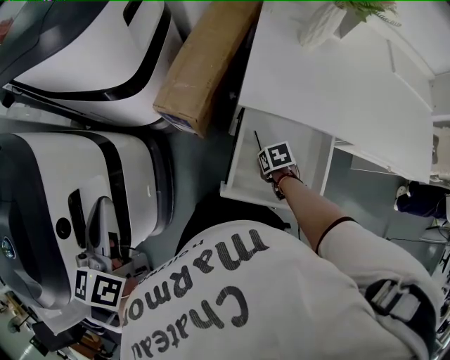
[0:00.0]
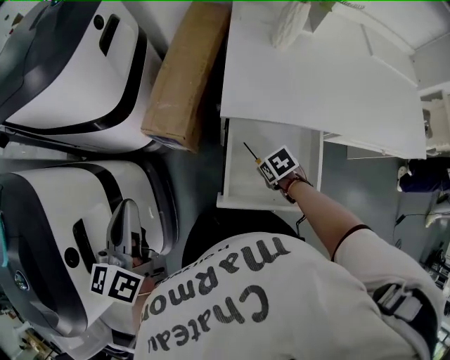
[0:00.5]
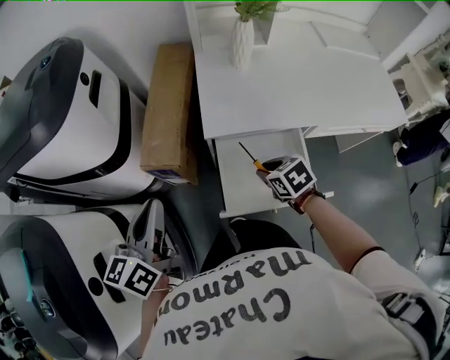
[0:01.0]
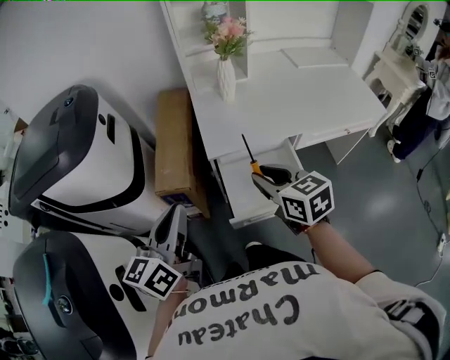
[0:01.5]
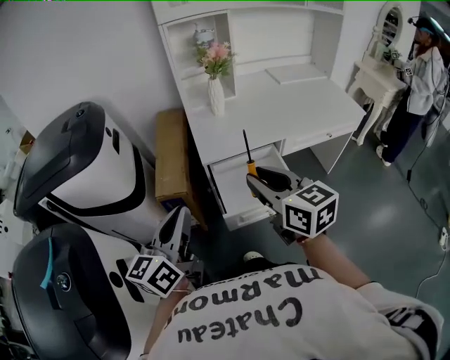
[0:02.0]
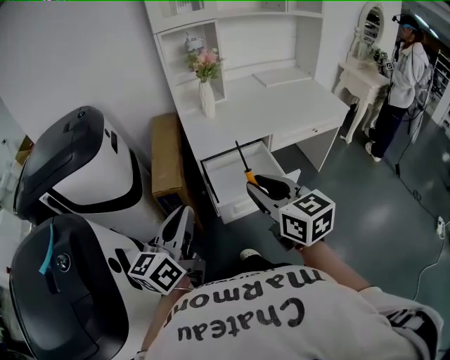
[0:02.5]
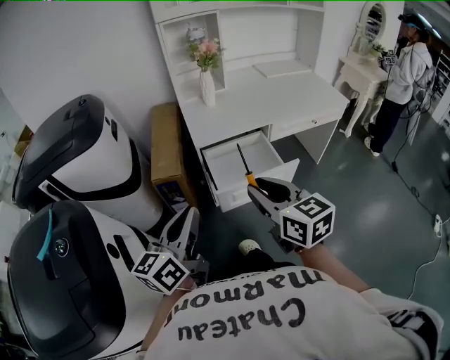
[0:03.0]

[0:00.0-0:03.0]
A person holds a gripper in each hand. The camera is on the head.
0:00.0 to 0:01.5: The right gripper travels upward by some 40 cm, and points its fingers approximately 50 degrees further upward, while the left gripper moves roughly 15 cm, and turns by about 40 degrees.
0:01.5 to 0:03.0: Both grippers travel together backward, some 20 cm.

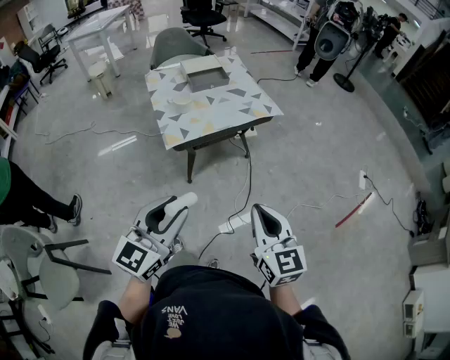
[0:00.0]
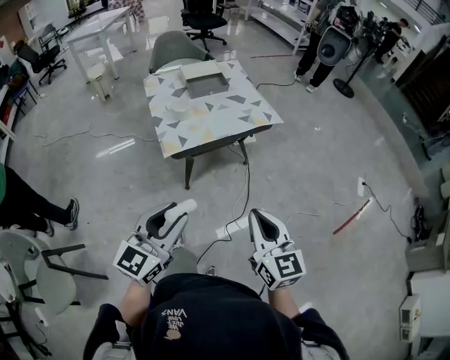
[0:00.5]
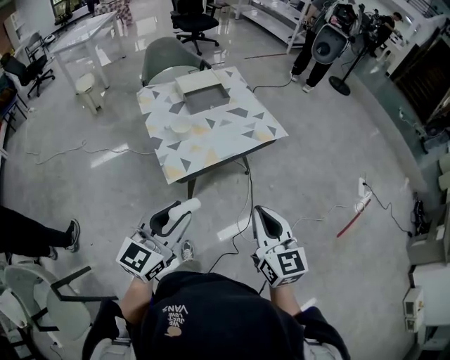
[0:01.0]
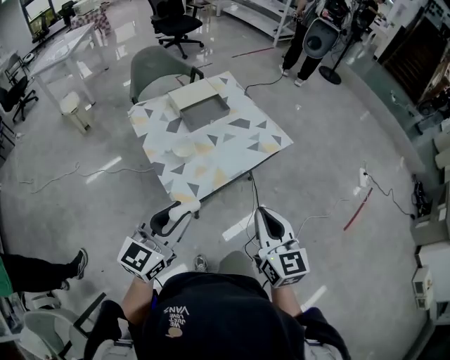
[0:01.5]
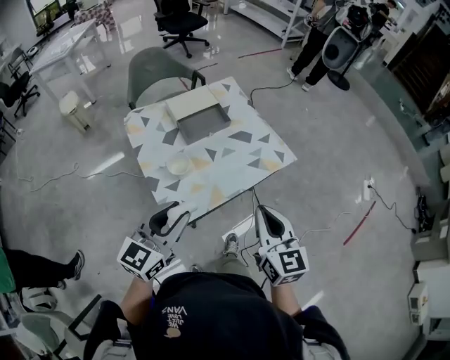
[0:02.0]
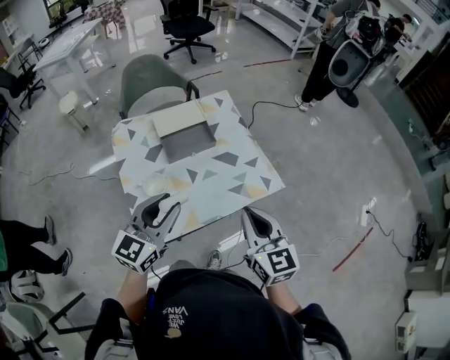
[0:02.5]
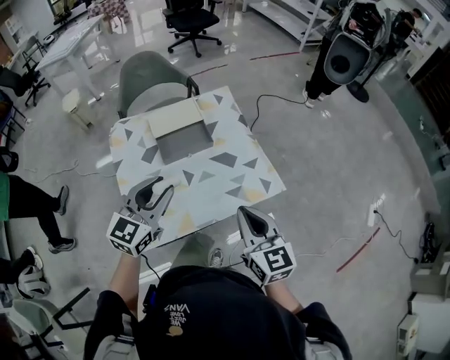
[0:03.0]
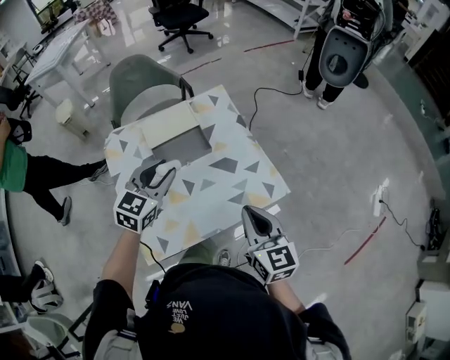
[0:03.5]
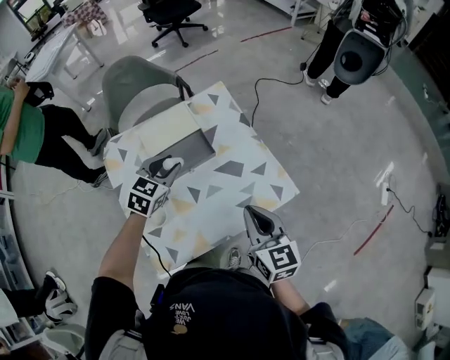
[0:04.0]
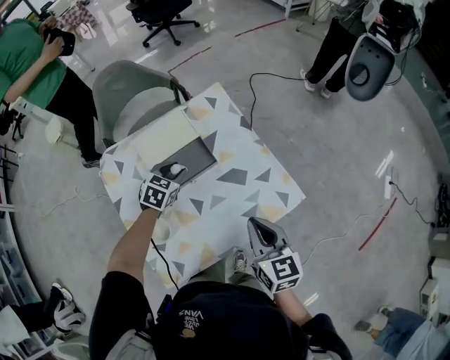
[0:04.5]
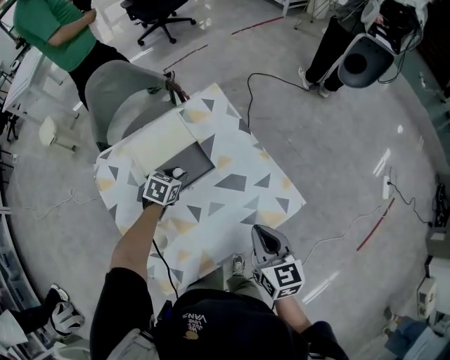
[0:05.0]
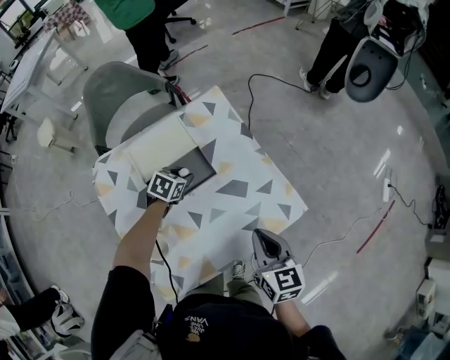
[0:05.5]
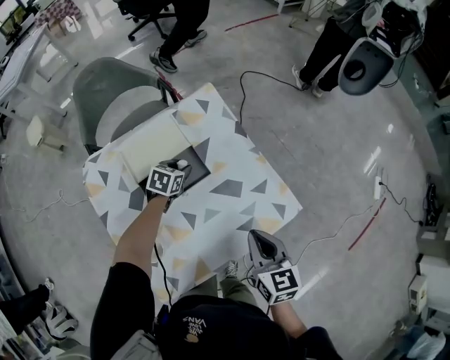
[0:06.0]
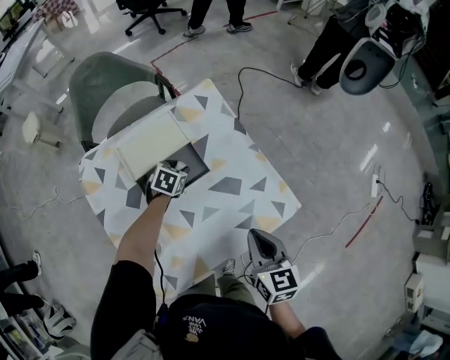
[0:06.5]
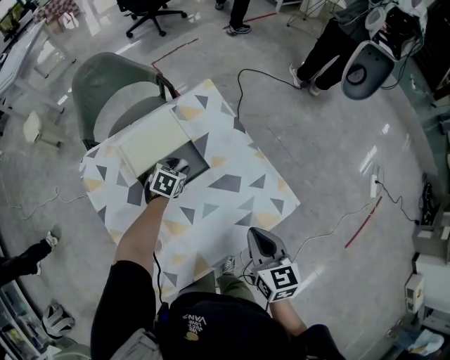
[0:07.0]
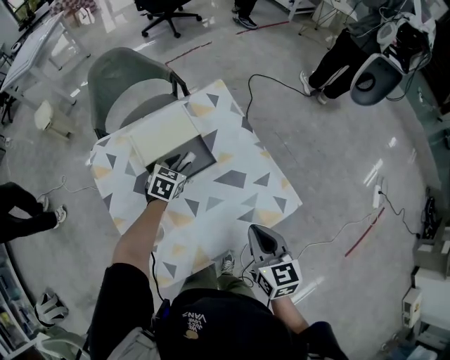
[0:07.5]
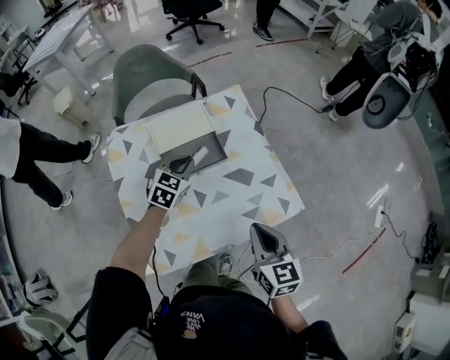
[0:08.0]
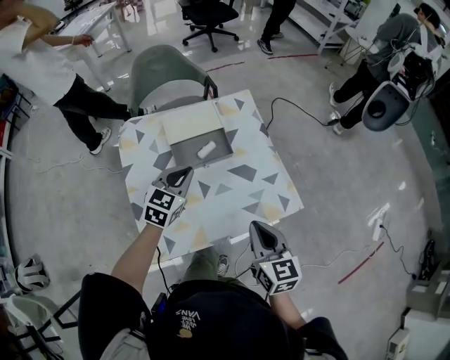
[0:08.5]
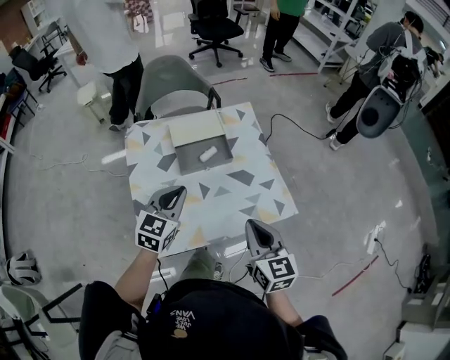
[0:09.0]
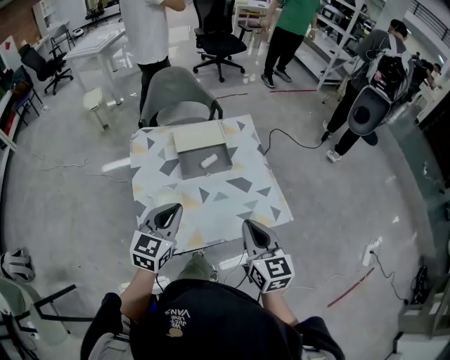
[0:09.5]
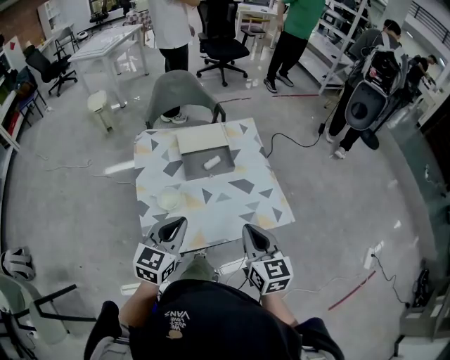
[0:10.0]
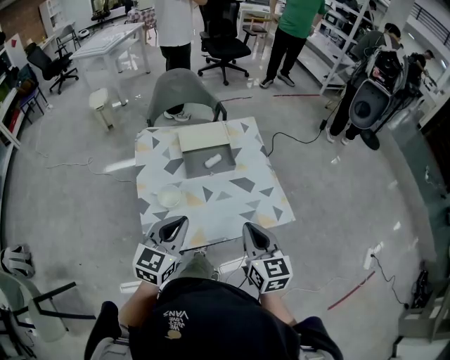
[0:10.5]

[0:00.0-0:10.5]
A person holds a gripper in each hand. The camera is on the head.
0:00.0 to 0:02.0: Both grippers travel together forward, about 35 cm.
0:02.0 to 0:04.0: The left gripper goes some 40 cm forward, and turns by approximately 30 degrees. Meanwhile the right gripper moves forward, some 25 cm.
0:04.0 to 0:06.5: The left gripper shifts approximately 25 cm downward and forward, and rotates approximately 30 degrees, while the right gripper moves downward, about 10 cm.
0:06.5 to 0:08.5: The left gripper is displaced upward and backward by roughly 30 cm, points its fingers approximately 30 degrees further upward, and closes. The right gripper travels backward and upward by some 10 cm.
0:08.5 to 0:10.5: The right gripper heads backward, covering some 5 cm, while the left gripper travels backward by some 20 cm.

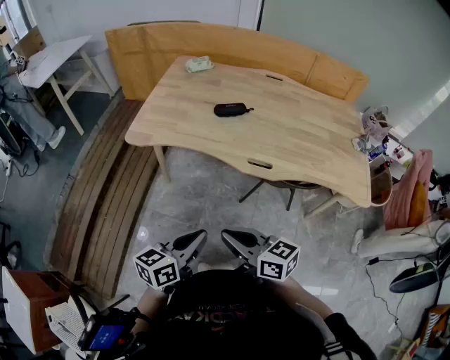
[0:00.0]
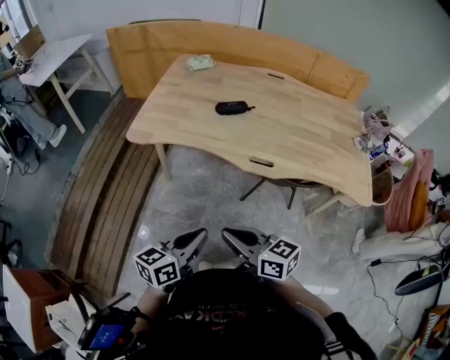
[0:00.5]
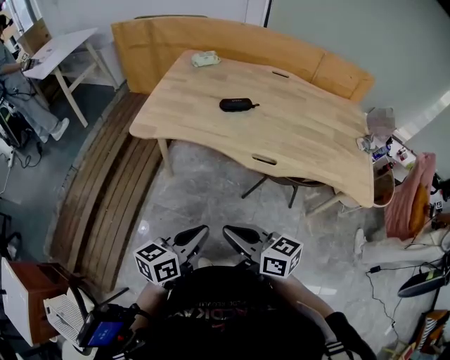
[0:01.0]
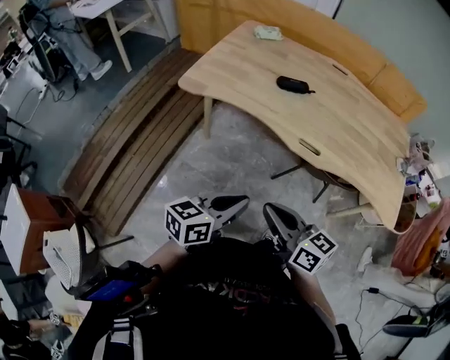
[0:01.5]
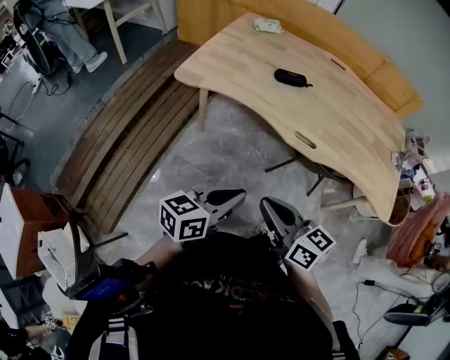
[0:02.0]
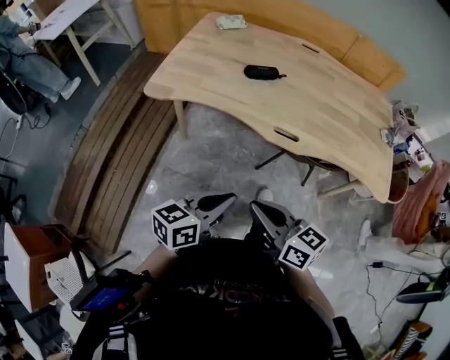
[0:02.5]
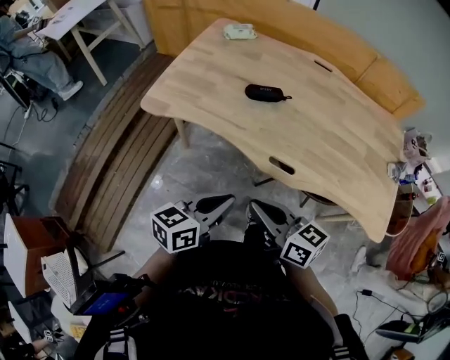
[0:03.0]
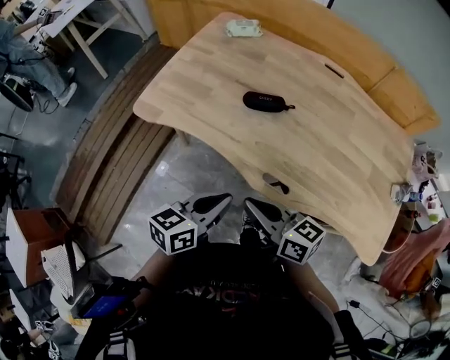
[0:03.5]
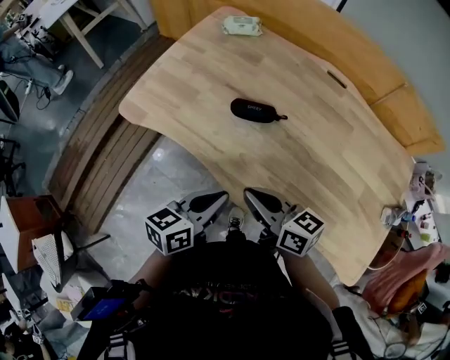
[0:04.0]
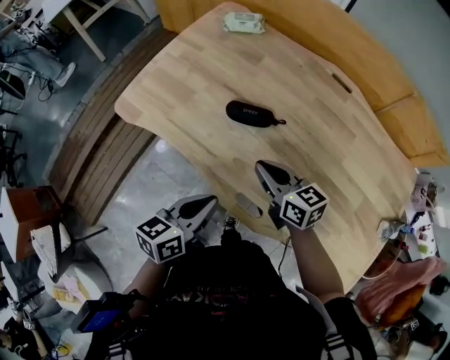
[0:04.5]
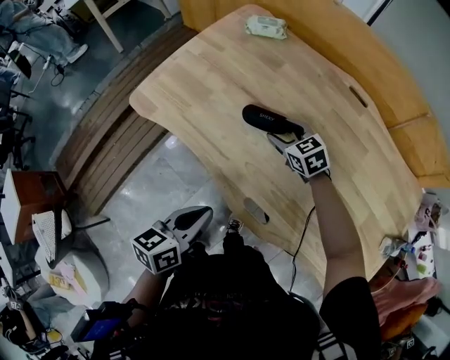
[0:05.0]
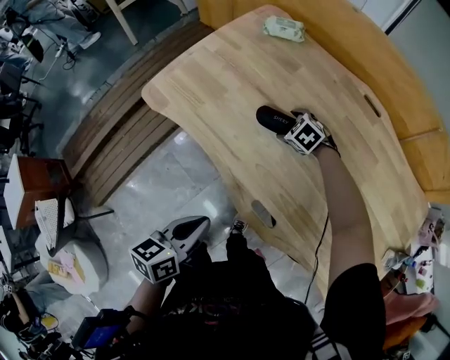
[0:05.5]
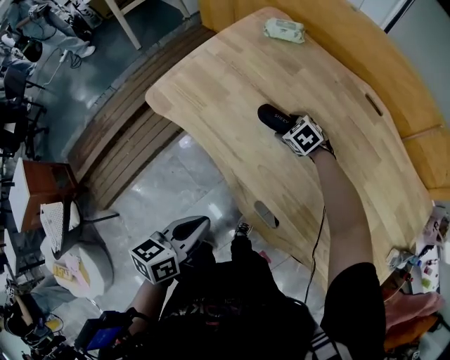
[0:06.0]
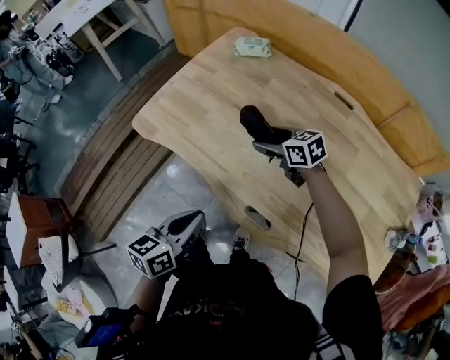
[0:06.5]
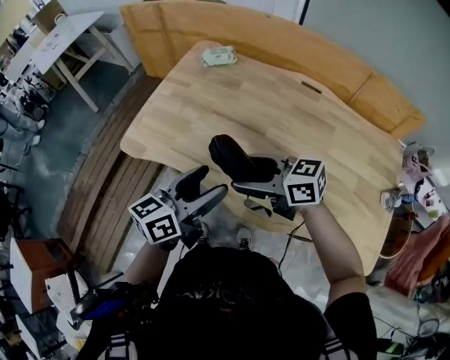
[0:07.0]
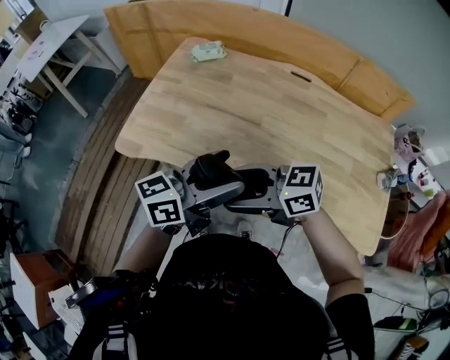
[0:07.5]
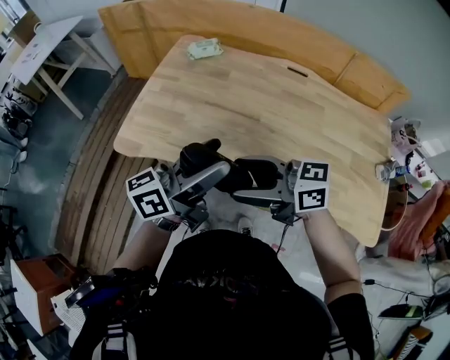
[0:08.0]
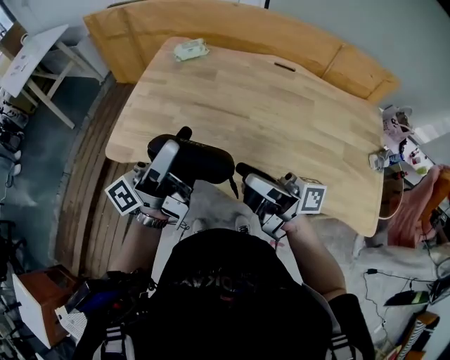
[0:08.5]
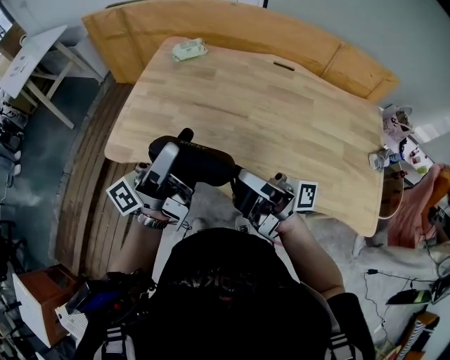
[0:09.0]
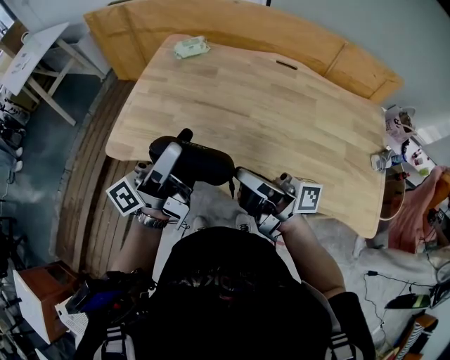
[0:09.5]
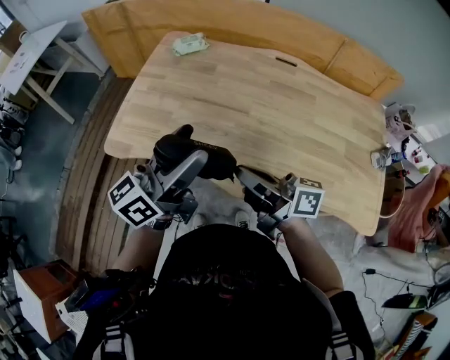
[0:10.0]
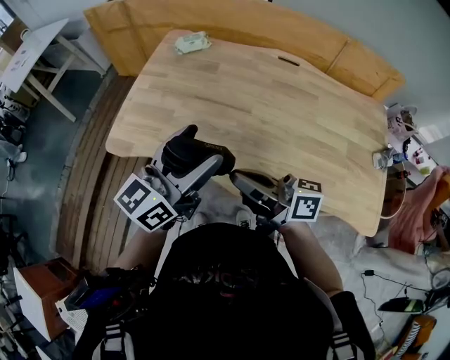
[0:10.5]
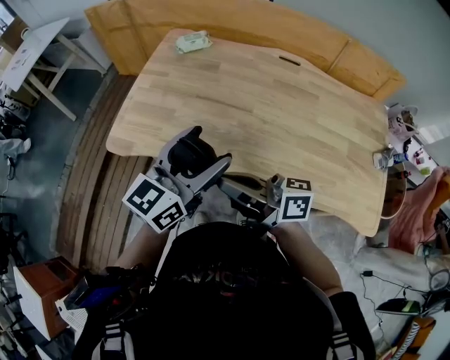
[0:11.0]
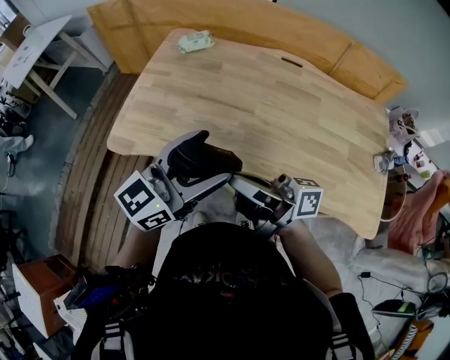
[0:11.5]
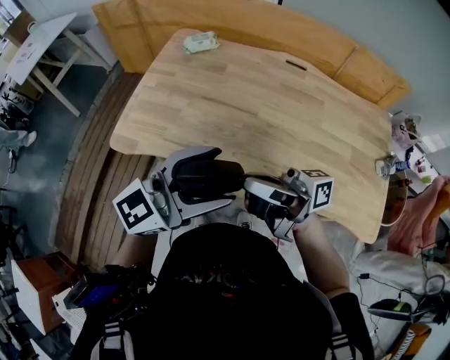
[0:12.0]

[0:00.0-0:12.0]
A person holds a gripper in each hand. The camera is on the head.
0:00.0 to 0:02.0: The grippers move only a little.
0:02.0 to 0:04.0: The two grippers go about 35 cm forward and to the right.
0:04.0 to 0:06.0: The left gripper shifts approximately 5 cm to the left, and changes its angle by roughly 20 degrees. Meanwhile the right gripper goes about 35 cm forward and downward, angles its fingers downward, by about 50 degrees, and opens up.
0:06.0 to 0:08.0: The right gripper moves upward, some 30 cm, and tips its fingers upward by roughly 60 degrees. Meanwhile the left gripper heads upward, covering some 15 cm, tips its fingers upward by about 40 degrees, and opens its fingers.
0:08.0 to 0:10.0: The right gripper changes its angle by roughly 40 degrees, and closes up.
0:10.0 to 0:12.0: The right gripper moves upward, approximately 5 cm, and swivels approximately 30 degrees, while the left gripper ends up some 10 cm from where it was, and changes its angle by roughly 30 degrees.

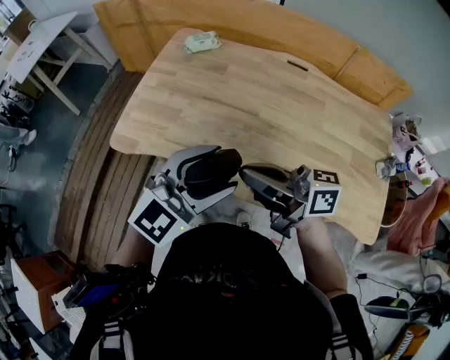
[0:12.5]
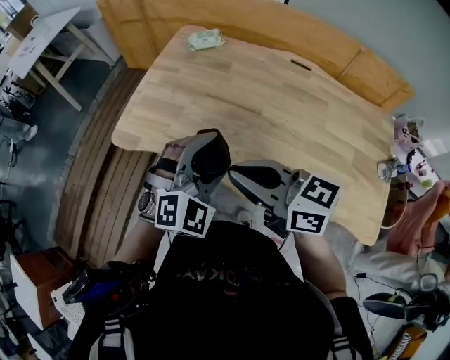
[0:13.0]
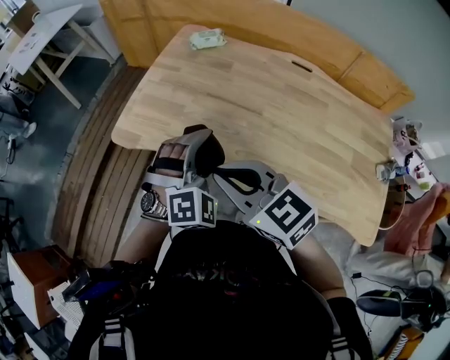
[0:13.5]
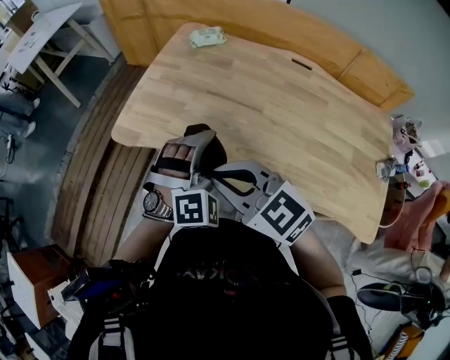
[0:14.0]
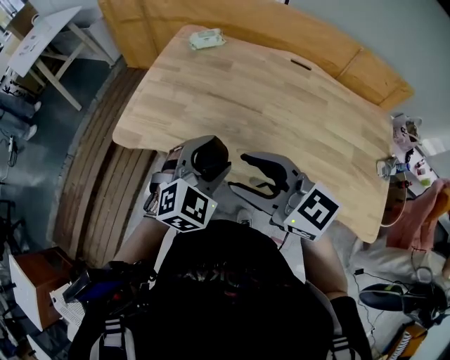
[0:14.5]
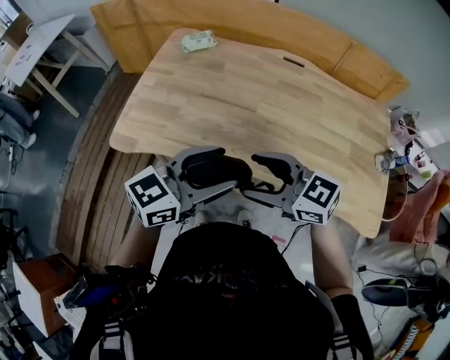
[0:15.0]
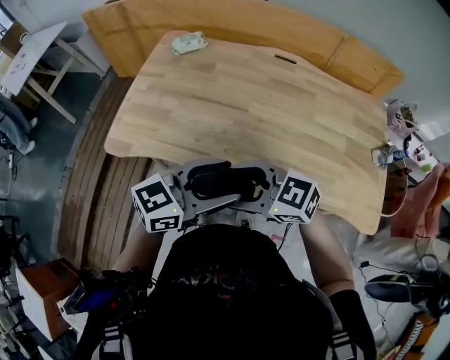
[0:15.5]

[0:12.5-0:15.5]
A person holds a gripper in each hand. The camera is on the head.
0:12.5 to 0:14.0: The right gripper moves to the left, about 10 cm, and rolls counterclockwise, seen from behind, by approximately 50 degrees. The left gripper travels downward and forward by roughly 10 cm, and rotates some 50 degrees.
0:14.0 to 0:15.5: The right gripper moves roughly 10 cm, and opens its fingers; the left gripper shifts by about 10 cm, and rotates roughly 90 degrees.
